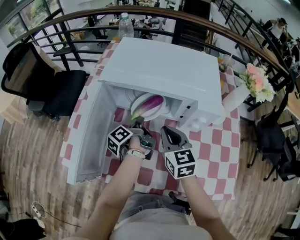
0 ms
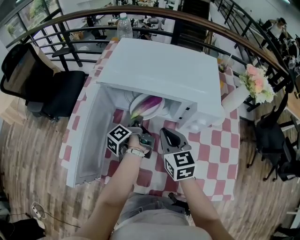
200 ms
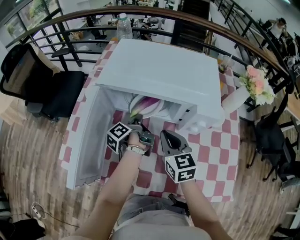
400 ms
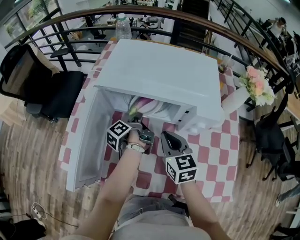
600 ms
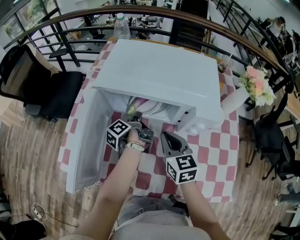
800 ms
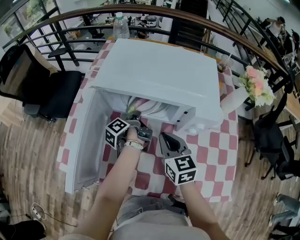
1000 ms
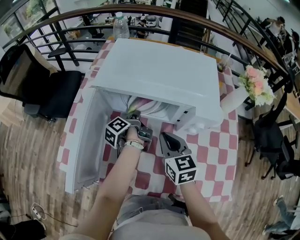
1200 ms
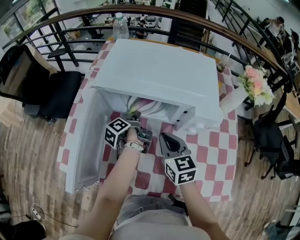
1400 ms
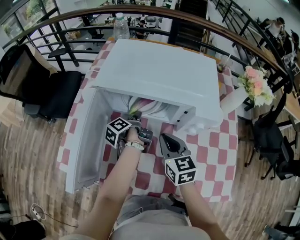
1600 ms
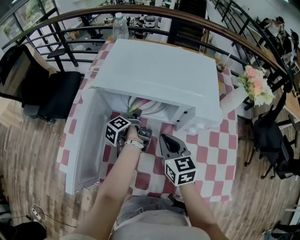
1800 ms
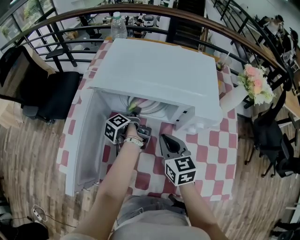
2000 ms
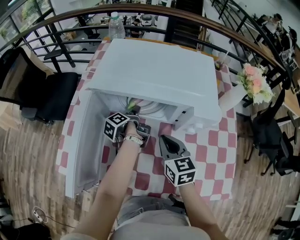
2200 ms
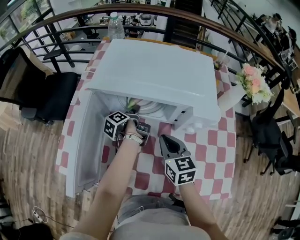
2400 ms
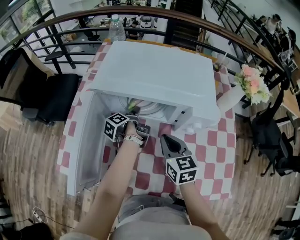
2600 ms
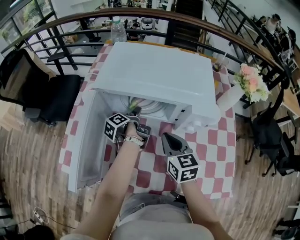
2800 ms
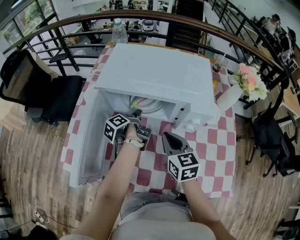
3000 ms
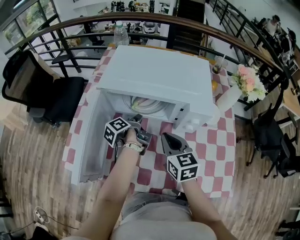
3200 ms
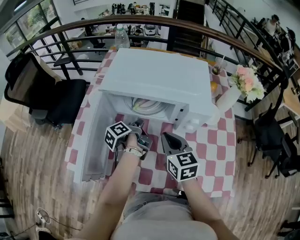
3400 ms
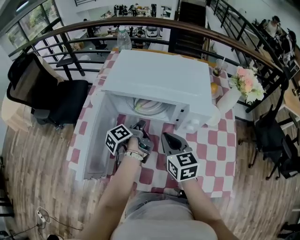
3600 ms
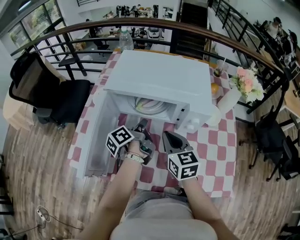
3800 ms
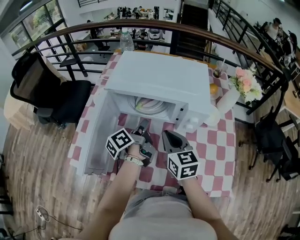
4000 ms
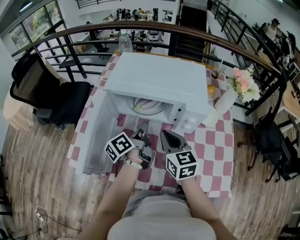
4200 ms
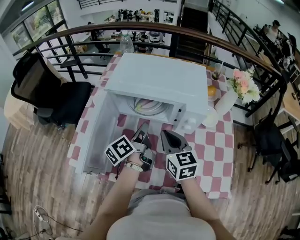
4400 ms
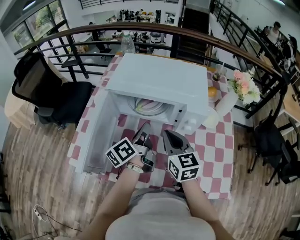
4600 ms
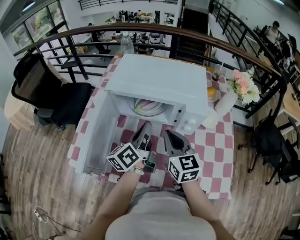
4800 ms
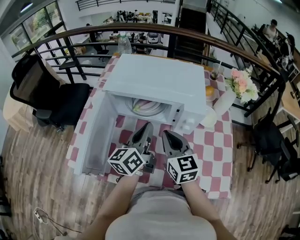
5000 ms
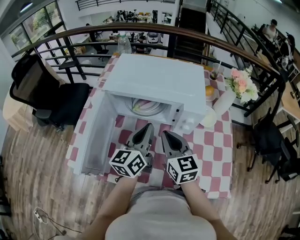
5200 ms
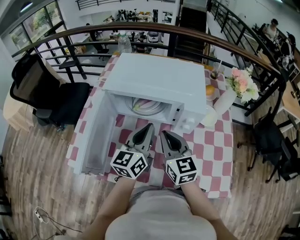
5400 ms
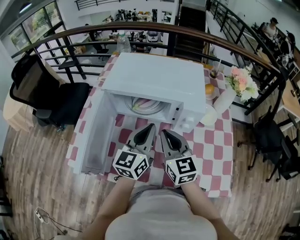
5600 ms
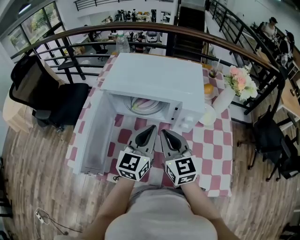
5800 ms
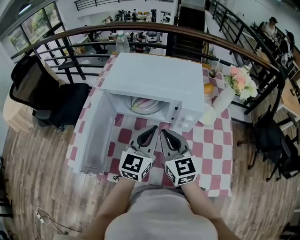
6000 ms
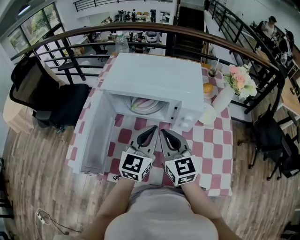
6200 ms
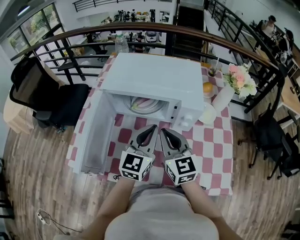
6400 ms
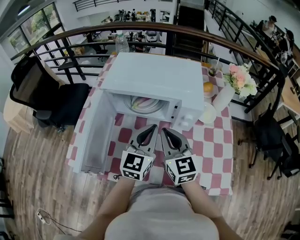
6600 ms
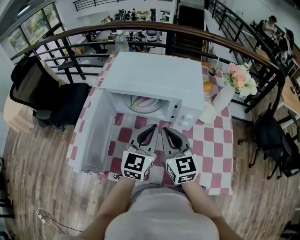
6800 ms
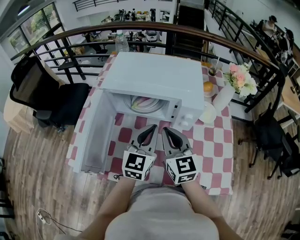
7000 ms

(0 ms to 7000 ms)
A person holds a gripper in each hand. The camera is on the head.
2800 ms - 4200 ms: The right gripper goes some 5 cm upward.

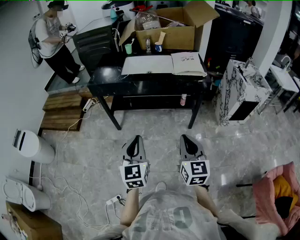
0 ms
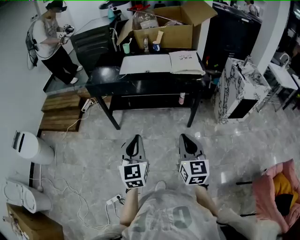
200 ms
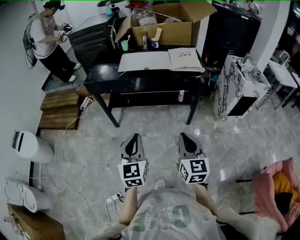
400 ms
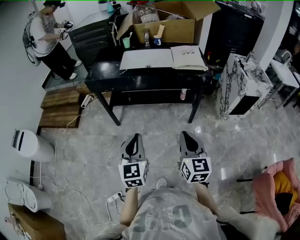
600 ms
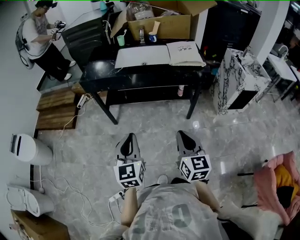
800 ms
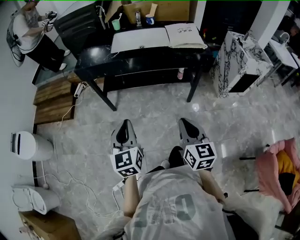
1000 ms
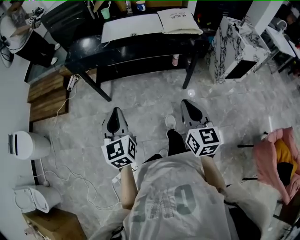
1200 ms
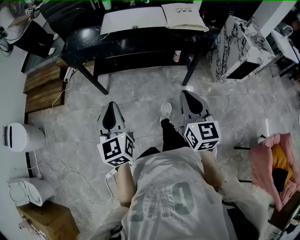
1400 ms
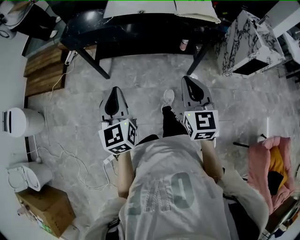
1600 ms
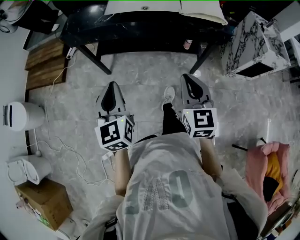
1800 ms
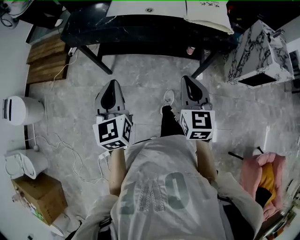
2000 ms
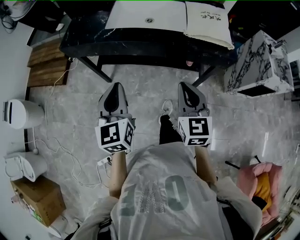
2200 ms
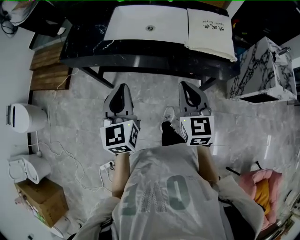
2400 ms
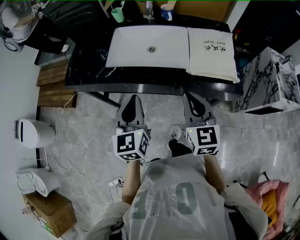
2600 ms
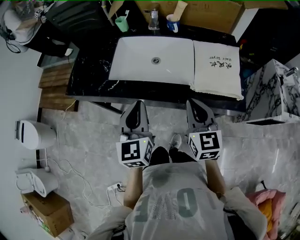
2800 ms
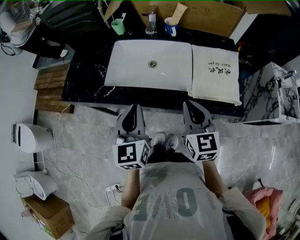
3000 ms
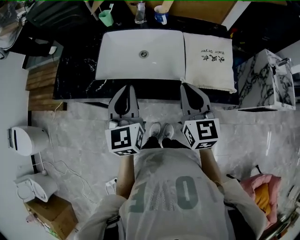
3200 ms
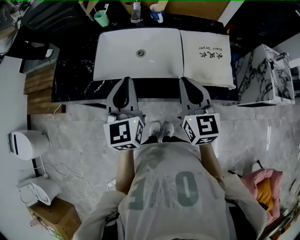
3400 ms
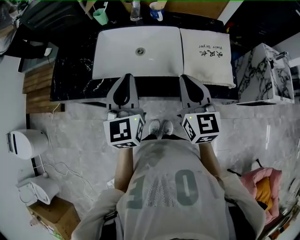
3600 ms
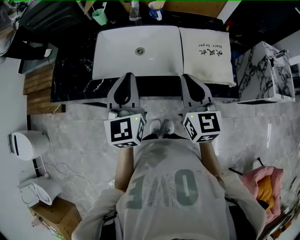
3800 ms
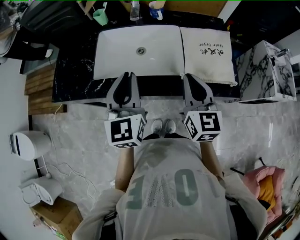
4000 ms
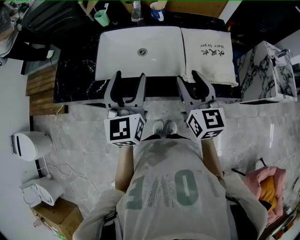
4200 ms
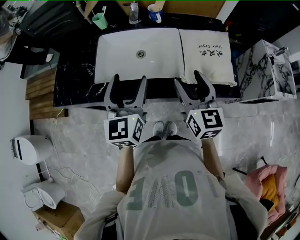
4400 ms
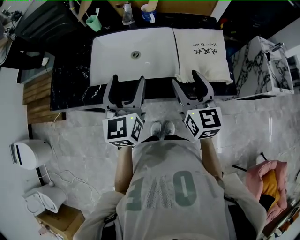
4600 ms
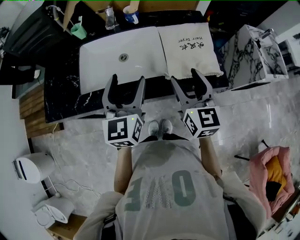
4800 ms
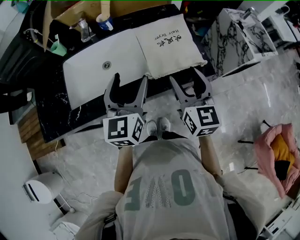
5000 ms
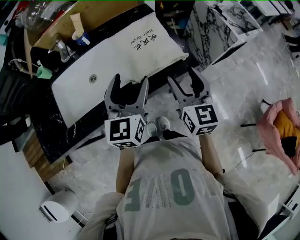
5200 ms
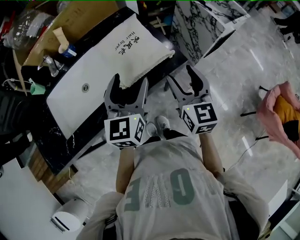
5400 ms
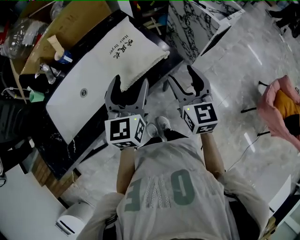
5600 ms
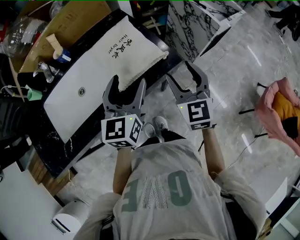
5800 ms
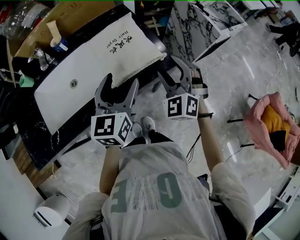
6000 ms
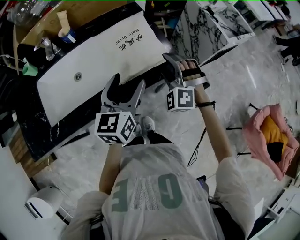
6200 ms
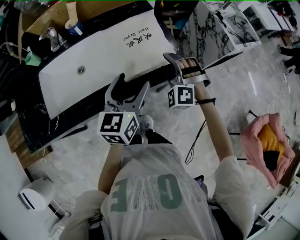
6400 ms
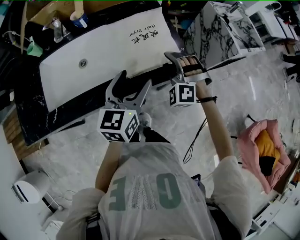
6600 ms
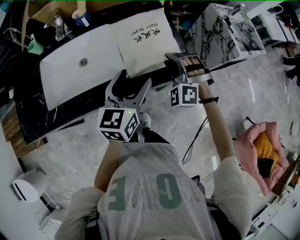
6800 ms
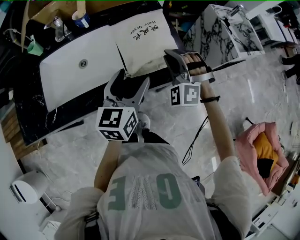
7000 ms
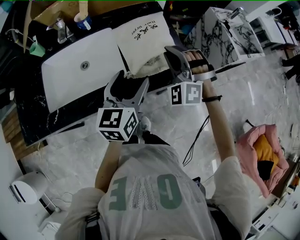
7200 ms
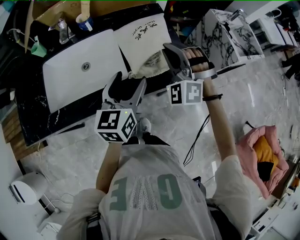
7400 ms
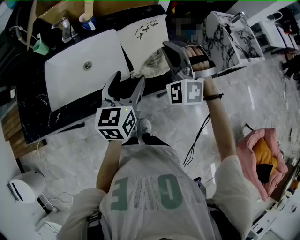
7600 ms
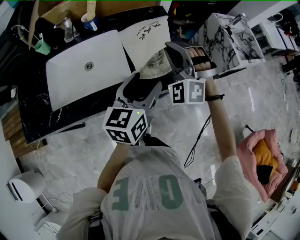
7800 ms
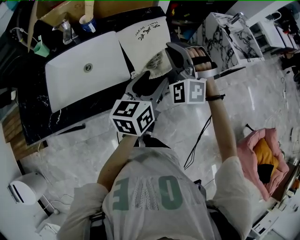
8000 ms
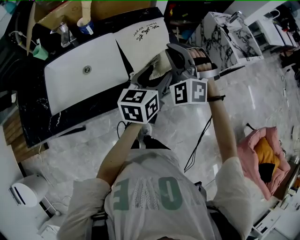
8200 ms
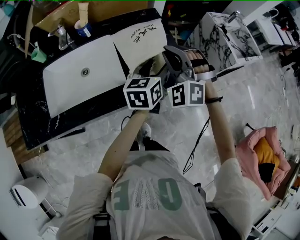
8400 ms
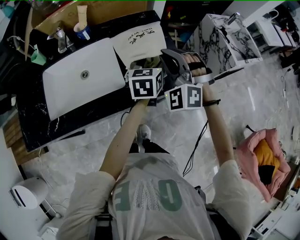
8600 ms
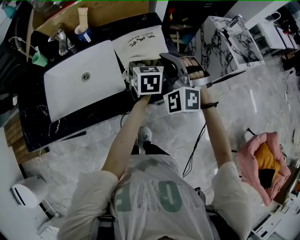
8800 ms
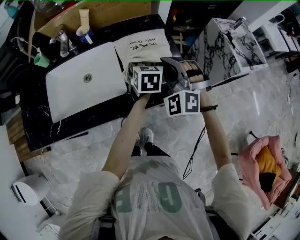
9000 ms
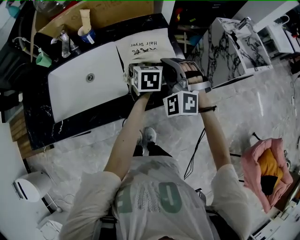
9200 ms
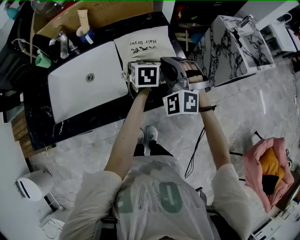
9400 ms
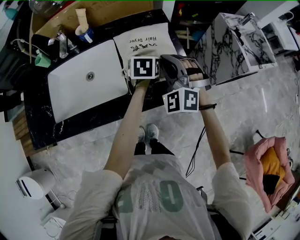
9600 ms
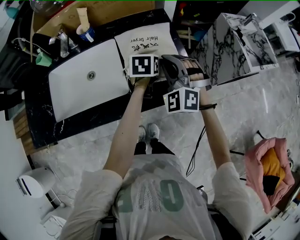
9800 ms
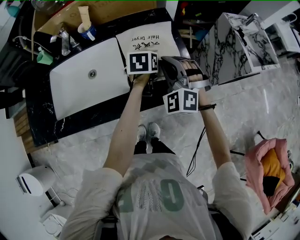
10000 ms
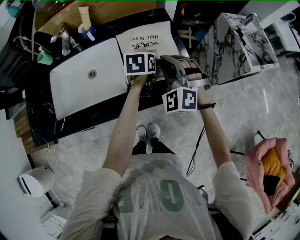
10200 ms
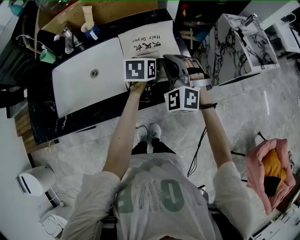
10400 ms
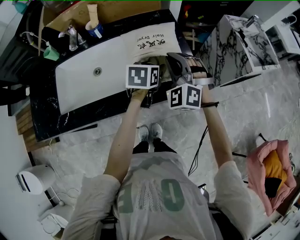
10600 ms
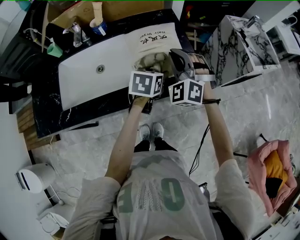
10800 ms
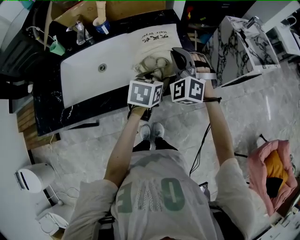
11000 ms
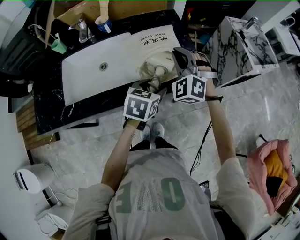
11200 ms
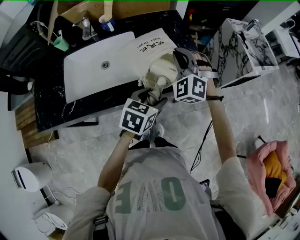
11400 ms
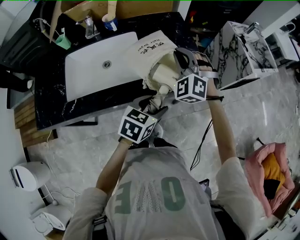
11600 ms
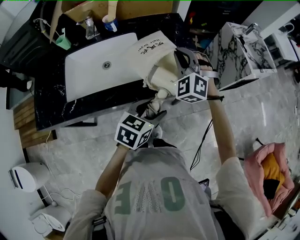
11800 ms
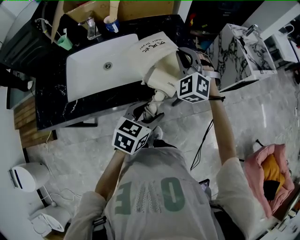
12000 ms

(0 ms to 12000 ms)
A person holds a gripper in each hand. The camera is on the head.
0 ms - 1600 ms: The left gripper travels forward and to the left by some 15 cm, while the right gripper goes some 15 cm forward.
1600 ms - 3000 ms: Both grippers travel together forward, approximately 35 cm.
3000 ms - 4400 ms: The right gripper opens its fingers; the left gripper heads forward, covering about 5 cm, and opens.
4400 ms - 6000 ms: The right gripper ends up some 20 cm from where it was, and rotates around the line of its fingers by about 50 degrees, counterclockwise from behind. The left gripper shifts by about 25 cm, and turns by about 40 degrees.
6000 ms - 7600 ms: The left gripper goes about 5 cm to the left. Meanwhile the right gripper goes about 15 cm to the left, forward and upward, rotates about 30 degrees, and closes.
7600 ms - 9000 ms: The left gripper is displaced forward, downward and to the right by approximately 20 cm, and turns by some 20 degrees.
10400 ms - 12000 ms: The left gripper travels backward by roughly 25 cm, and turns by roughly 20 degrees.

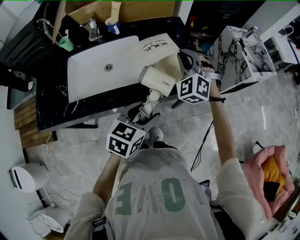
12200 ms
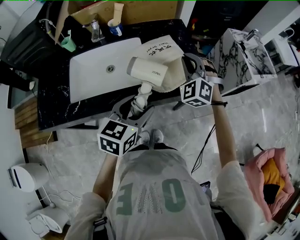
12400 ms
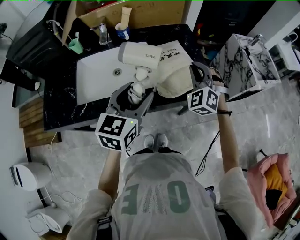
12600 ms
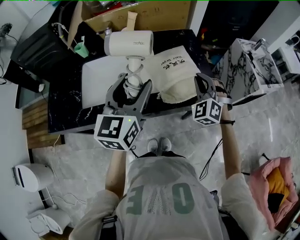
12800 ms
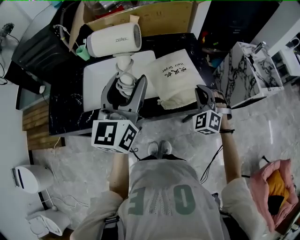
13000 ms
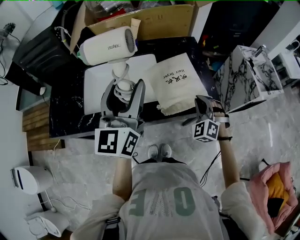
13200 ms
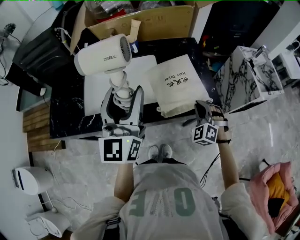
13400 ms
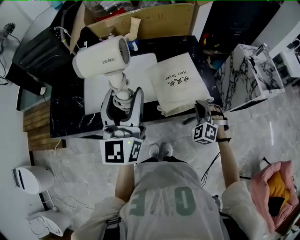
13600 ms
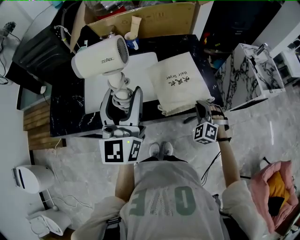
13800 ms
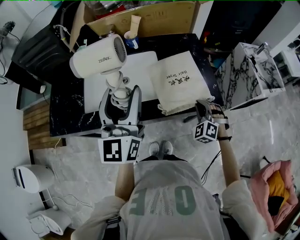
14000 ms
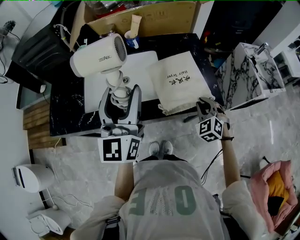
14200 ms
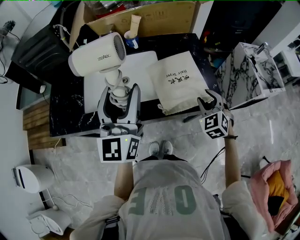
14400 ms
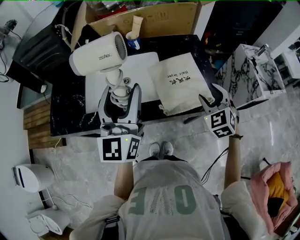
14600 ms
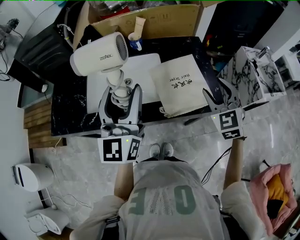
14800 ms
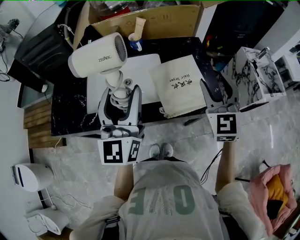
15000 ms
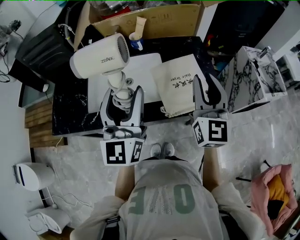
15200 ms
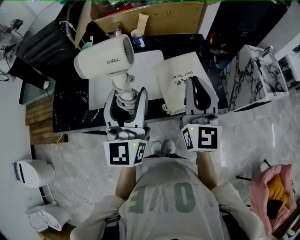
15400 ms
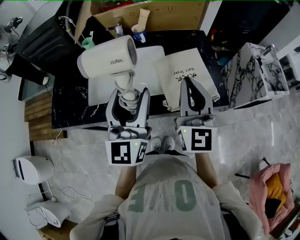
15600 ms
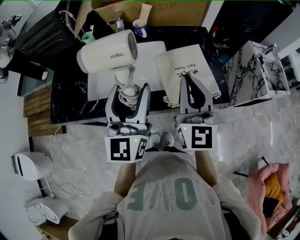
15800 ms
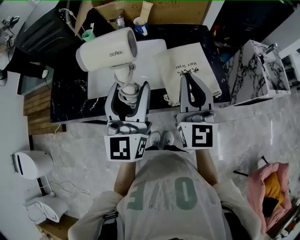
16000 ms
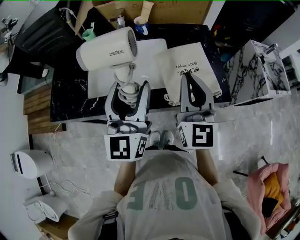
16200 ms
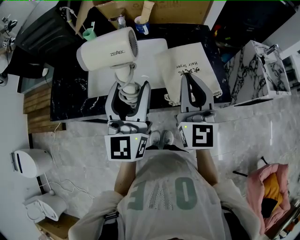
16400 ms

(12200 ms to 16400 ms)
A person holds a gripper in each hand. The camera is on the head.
12200 ms - 13600 ms: The left gripper is displaced upward and to the left by approximately 25 cm, and points its fingers about 50 degrees further upward. The right gripper goes roughly 15 cm downward and backward.
13600 ms - 15000 ms: The right gripper heads upward, covering approximately 20 cm, turns by some 50 degrees, and opens up.
15000 ms - 16400 ms: The right gripper goes some 10 cm to the left, swivels approximately 20 degrees, and closes up.

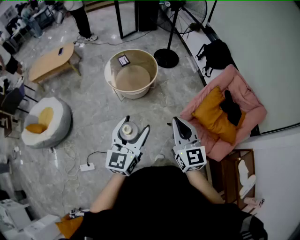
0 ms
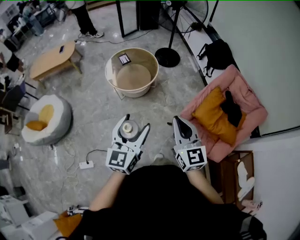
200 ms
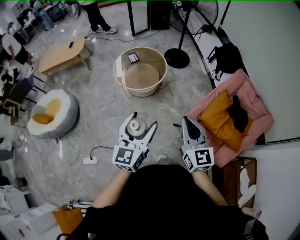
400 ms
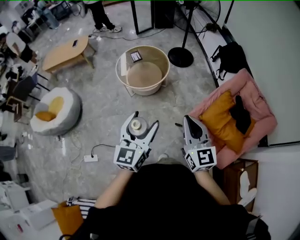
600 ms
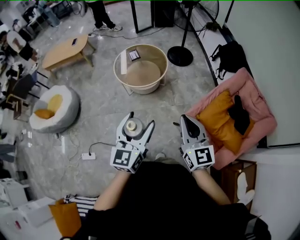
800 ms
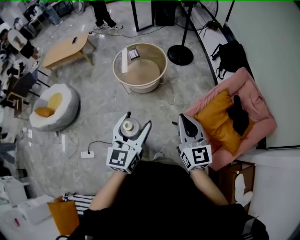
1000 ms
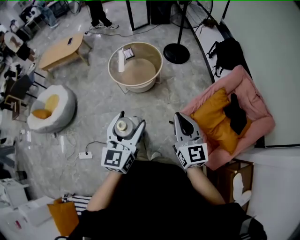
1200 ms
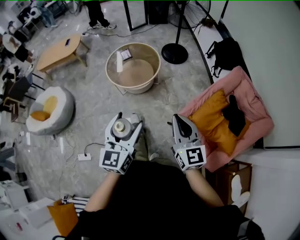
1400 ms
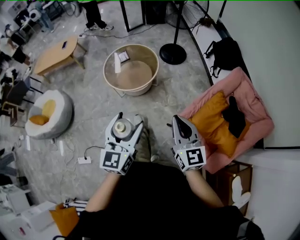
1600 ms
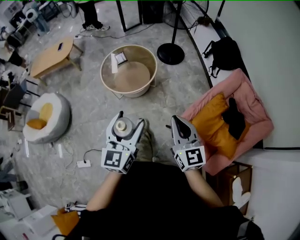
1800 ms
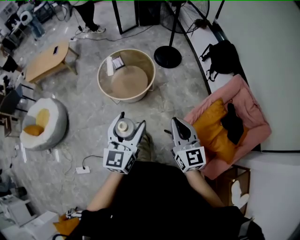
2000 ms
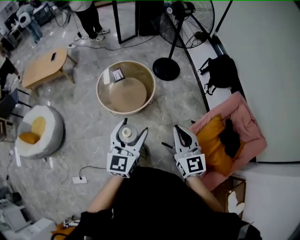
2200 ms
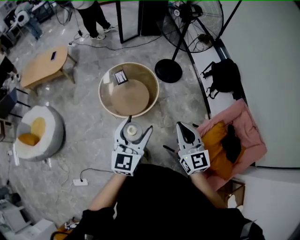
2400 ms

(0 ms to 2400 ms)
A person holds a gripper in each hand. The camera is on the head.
0 ms - 1200 ms: Both grippers move to the right, about 10 cm.
1200 ms - 2400 ms: Both grippers move forward, some 30 cm.
